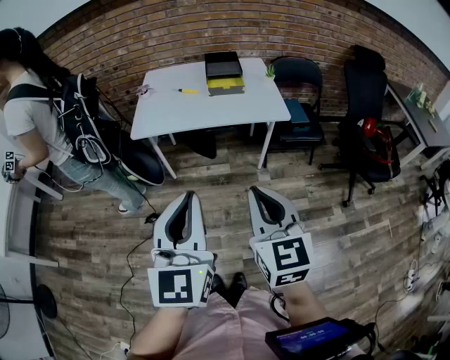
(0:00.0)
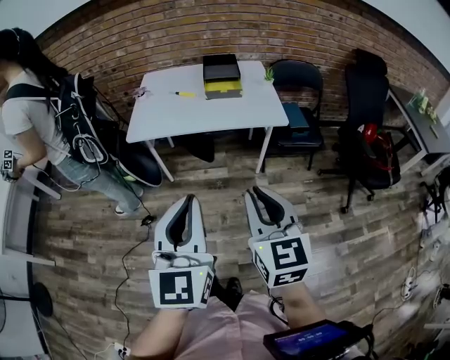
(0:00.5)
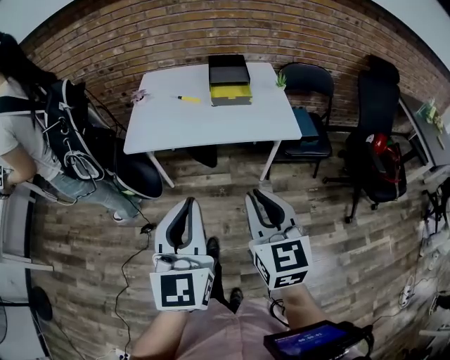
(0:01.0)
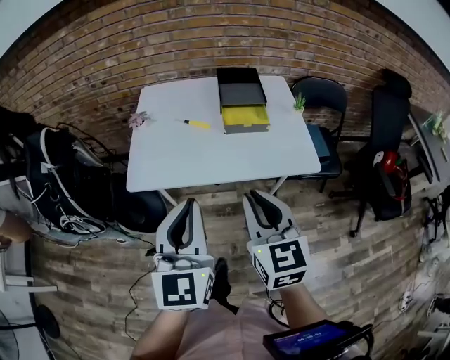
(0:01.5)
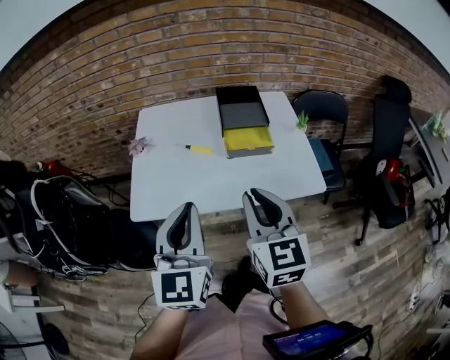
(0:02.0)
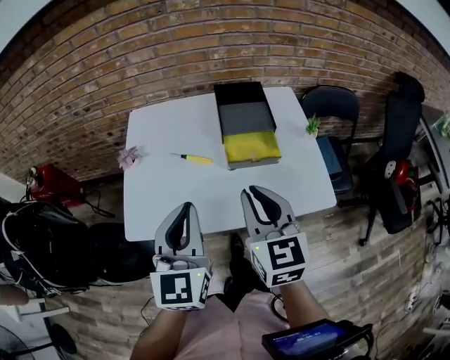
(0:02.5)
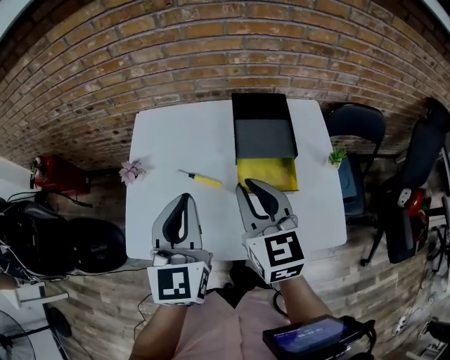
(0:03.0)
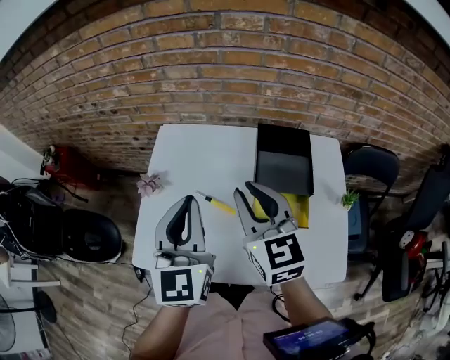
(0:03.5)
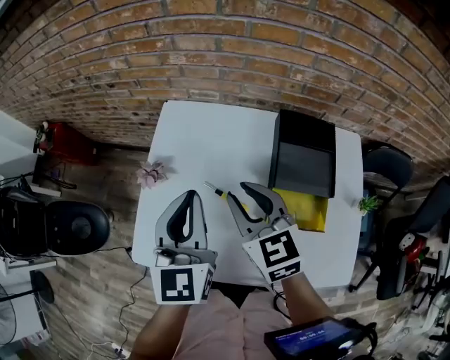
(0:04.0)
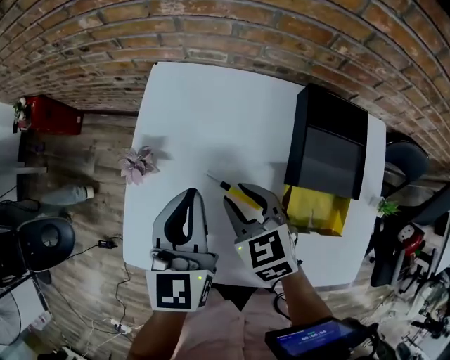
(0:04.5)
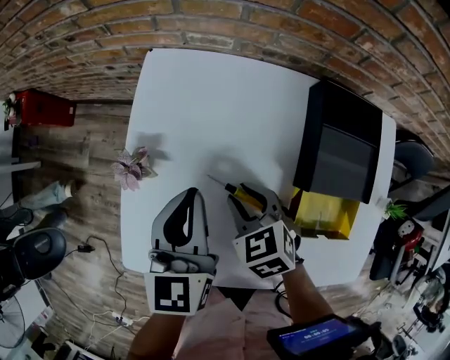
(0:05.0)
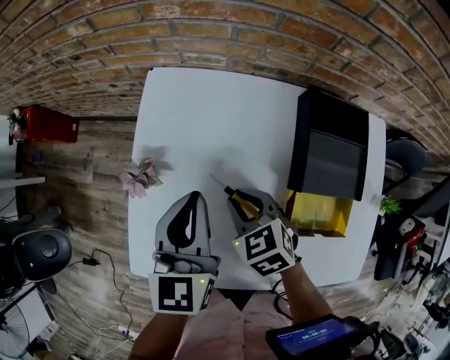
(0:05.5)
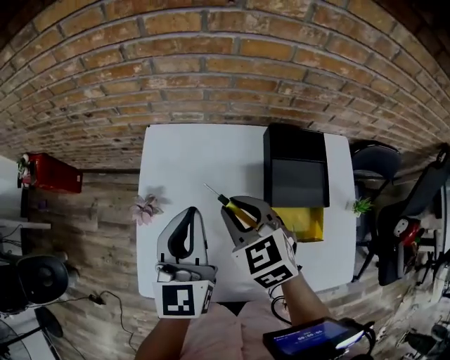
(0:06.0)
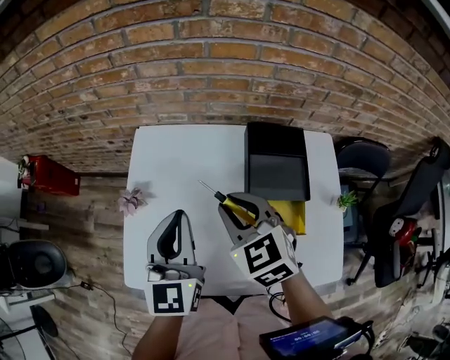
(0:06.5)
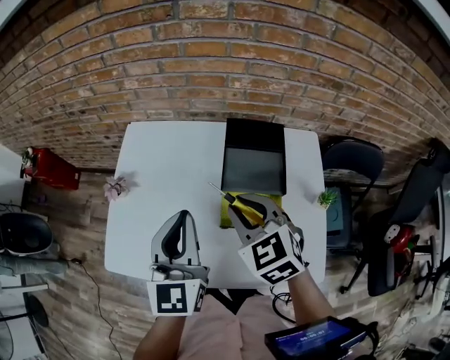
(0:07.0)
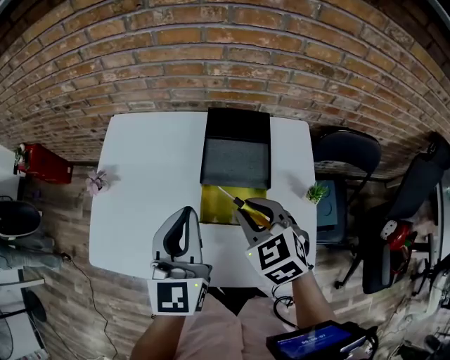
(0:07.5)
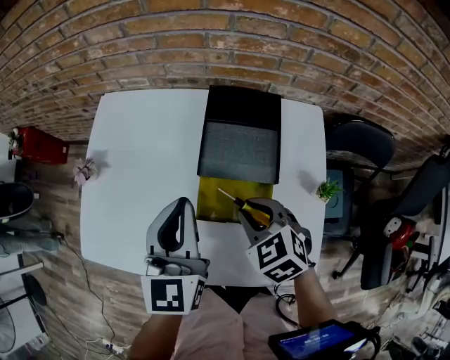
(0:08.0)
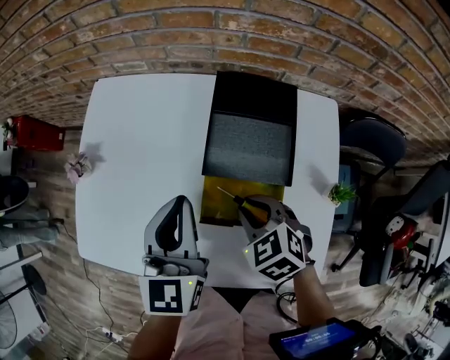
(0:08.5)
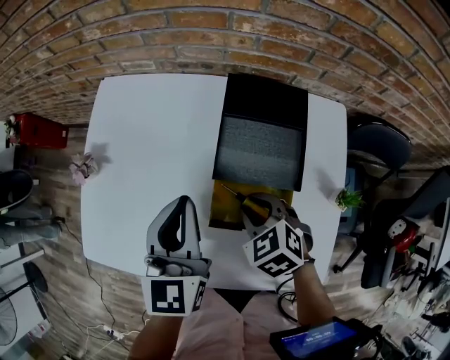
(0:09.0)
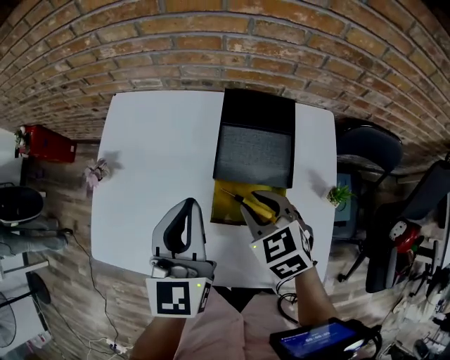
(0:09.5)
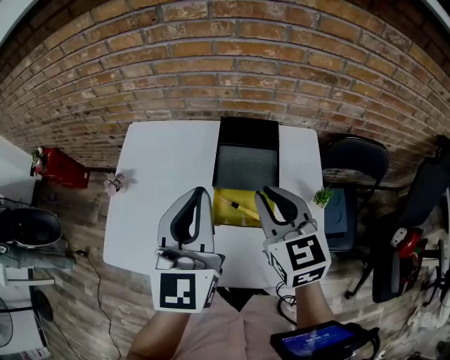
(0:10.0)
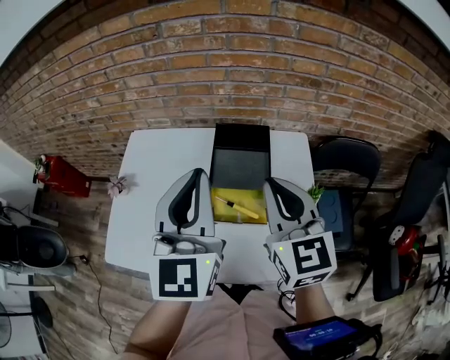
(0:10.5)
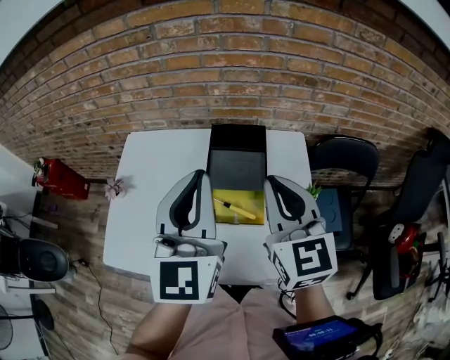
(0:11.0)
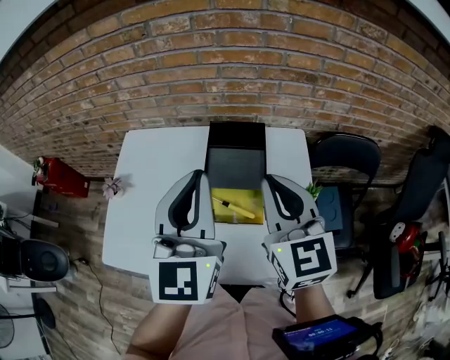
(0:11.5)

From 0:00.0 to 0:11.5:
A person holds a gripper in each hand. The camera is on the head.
From 0:00.0 to 0:02.0: The two grippers go roughly 40 cm forward.
From 0:02.0 to 0:04.0: Both grippers travel together forward, approximately 30 cm. The right gripper changes its angle by some 30 degrees.
From 0:04.0 to 0:06.0: The left gripper reaches roughly 15 cm downward, then returns. Meanwhile the right gripper goes downward and returns, roughly 20 cm each way.
From 0:06.0 to 0:07.5: Both grippers move to the right and backward, about 20 cm.
From 0:07.5 to 0:09.5: The right gripper heads downward, covering approximately 5 cm.
From 0:09.5 to 0:11.5: The right gripper shifts about 20 cm upward, angles its fingers upward, by about 40 degrees, and closes its fingers, while the left gripper shifts some 15 cm upward and to the right.

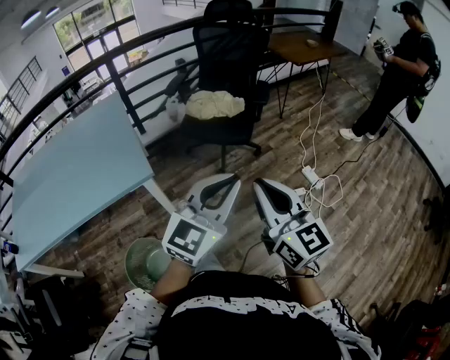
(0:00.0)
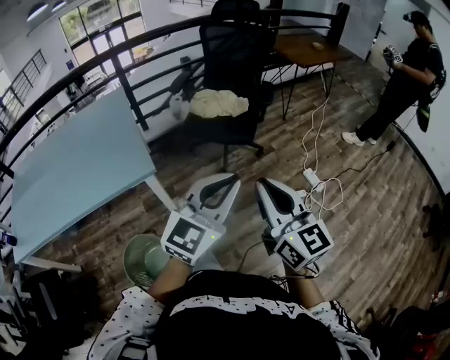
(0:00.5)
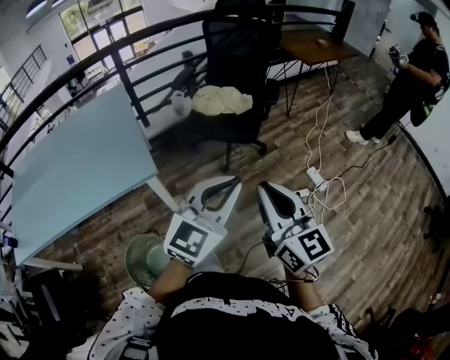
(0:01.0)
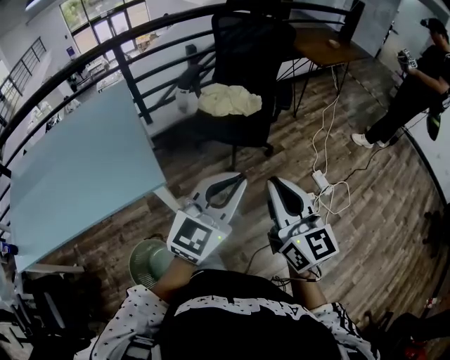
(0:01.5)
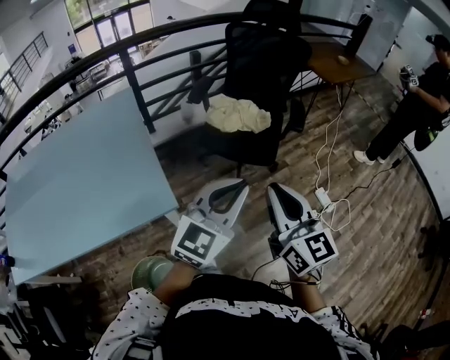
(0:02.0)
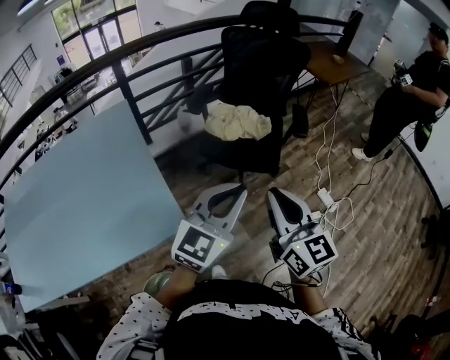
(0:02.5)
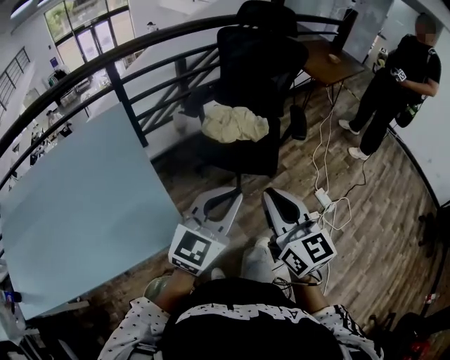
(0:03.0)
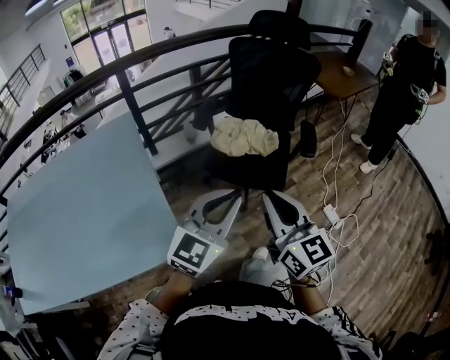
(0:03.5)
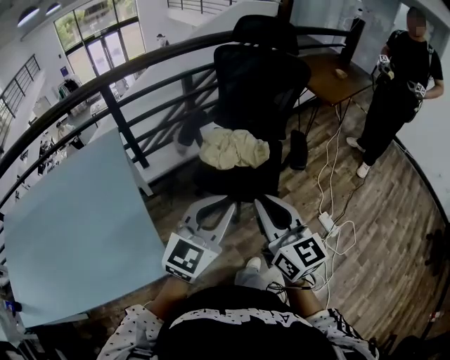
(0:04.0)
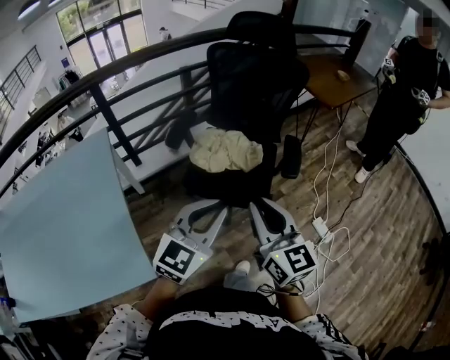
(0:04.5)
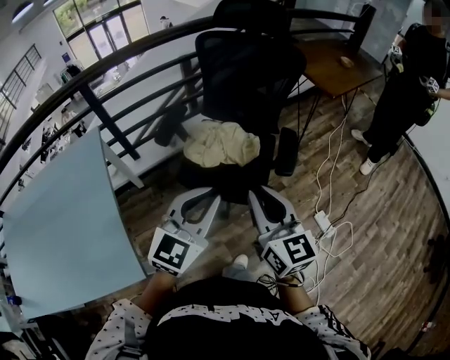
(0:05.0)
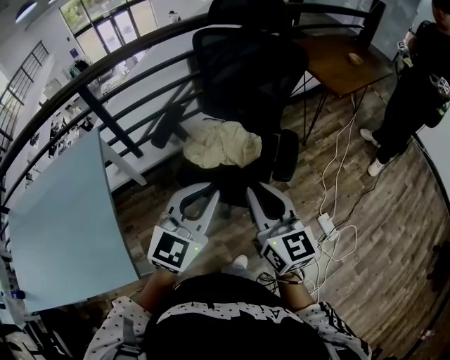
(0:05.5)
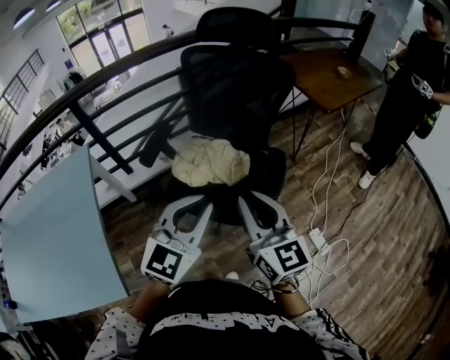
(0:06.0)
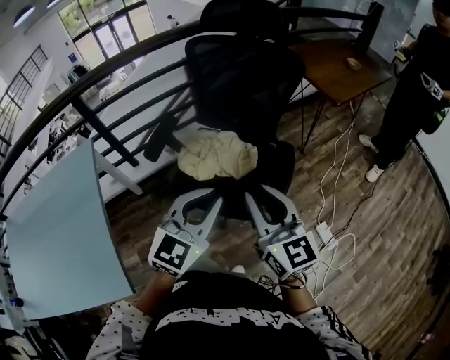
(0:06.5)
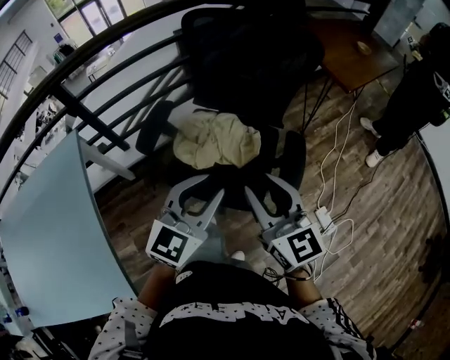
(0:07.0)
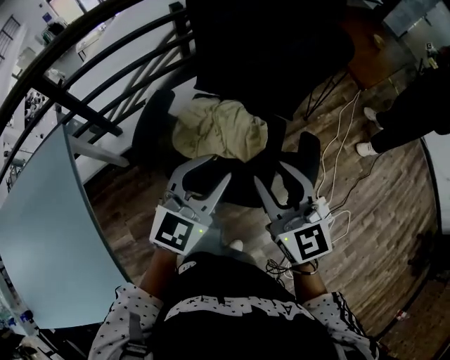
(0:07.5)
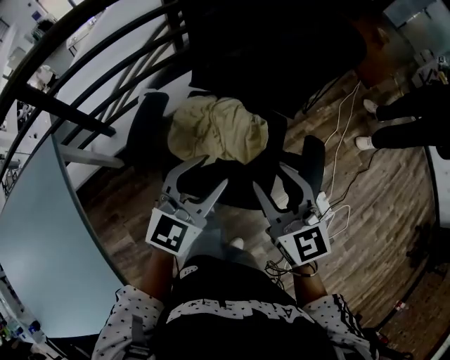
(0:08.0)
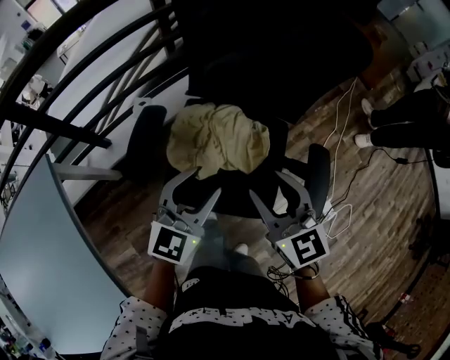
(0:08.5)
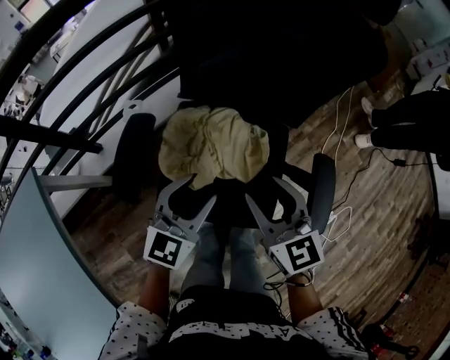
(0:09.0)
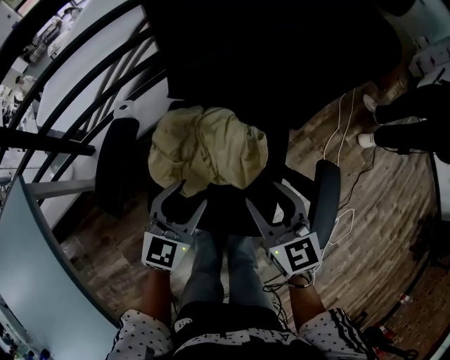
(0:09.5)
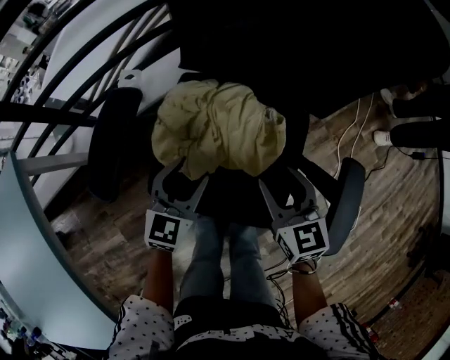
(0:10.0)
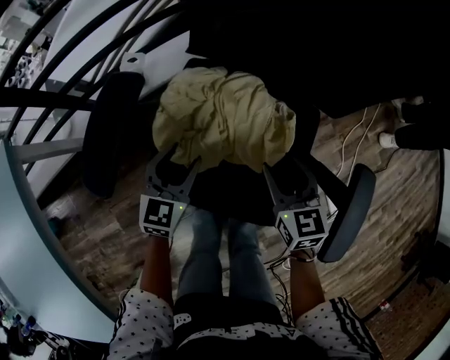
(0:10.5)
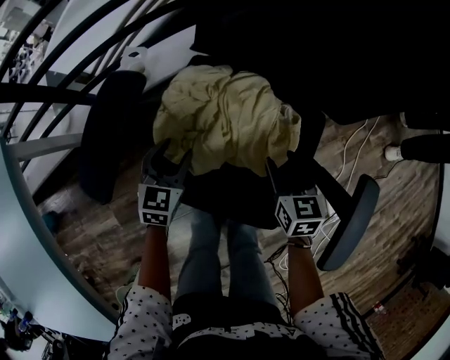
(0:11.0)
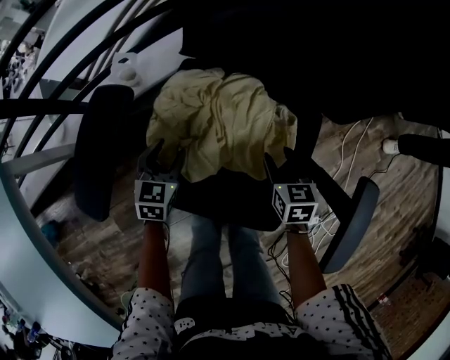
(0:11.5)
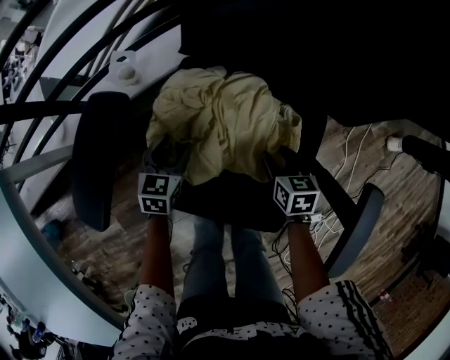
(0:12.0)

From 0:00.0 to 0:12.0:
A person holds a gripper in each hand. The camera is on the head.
From 0:00.0 to 0:02.0: Both grippers travel together forward and to the left, roughly 20 cm.
From 0:02.0 to 0:04.0: Both grippers travel together forward, some 15 cm.
From 0:04.0 to 0:06.0: Both grippers travel together forward and to the right, roughly 20 cm.
From 0:06.0 to 0:08.0: Both grippers travel together forward, downward and to the left, about 25 cm. The right gripper opens. The left gripper opens up.
From 0:08.0 to 0:10.0: The right gripper is displaced downward and forward by about 25 cm. The left gripper goes about 25 cm downward, and rotates some 20 degrees.
From 0:10.0 to 0:12.0: The right gripper is displaced downward by approximately 20 cm, and rotates approximately 30 degrees. Meanwhile the left gripper is displaced downward, to the left and forward by about 20 cm, and rotates about 20 degrees.

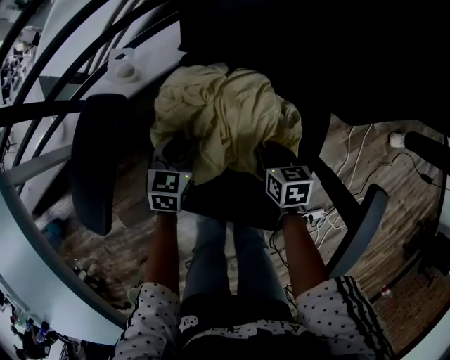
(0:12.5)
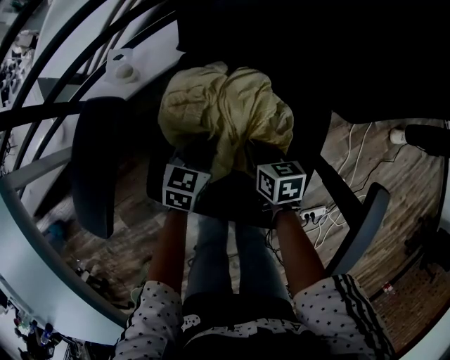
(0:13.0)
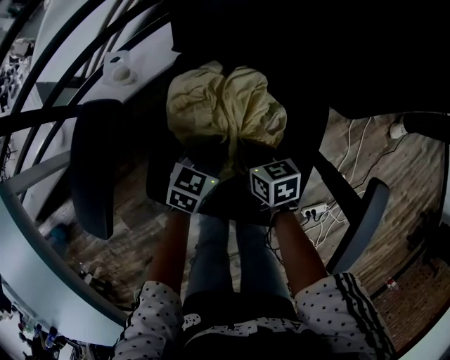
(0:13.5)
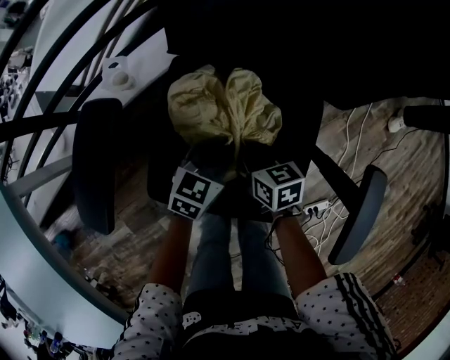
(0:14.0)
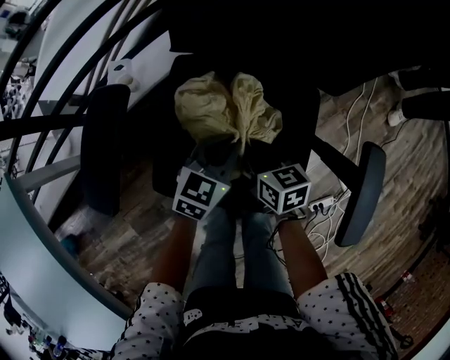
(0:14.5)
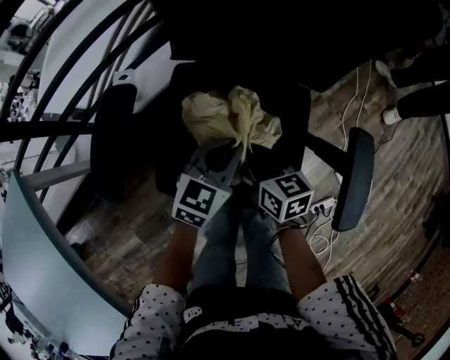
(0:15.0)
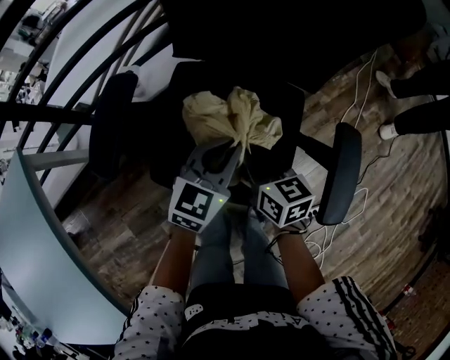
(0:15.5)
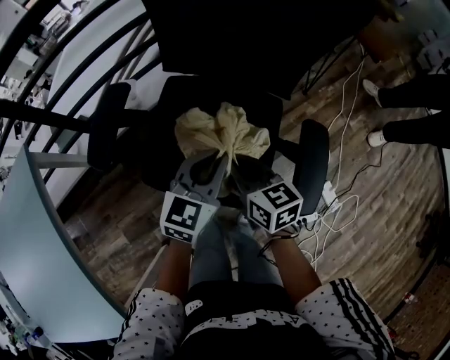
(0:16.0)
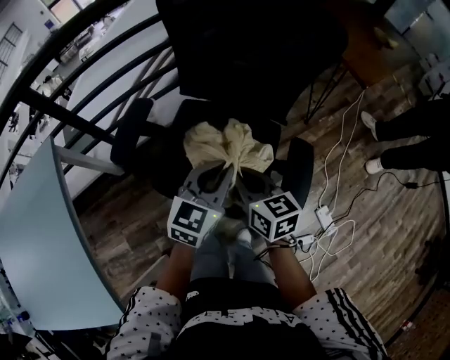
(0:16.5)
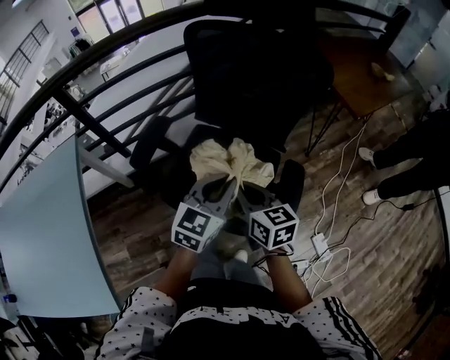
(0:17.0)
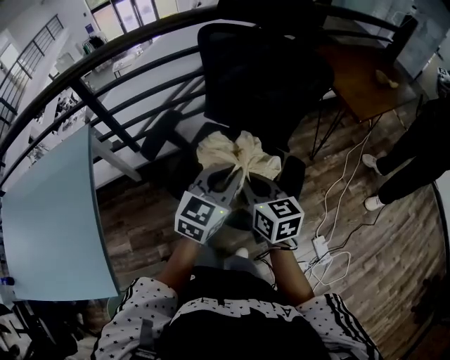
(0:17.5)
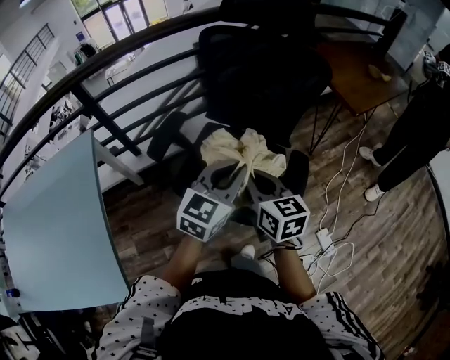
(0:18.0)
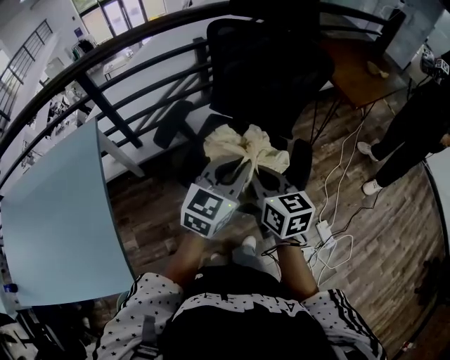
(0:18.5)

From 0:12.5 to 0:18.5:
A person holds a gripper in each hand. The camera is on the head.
From 0:12.5 to 0:14.5: The right gripper is displaced upward and to the left by some 10 cm, while the left gripper moves to the right and upward, roughly 15 cm, rotates approximately 30 degrees, and closes.
From 0:14.5 to 0:16.5: Both grippers travel together upward and backward, roughly 25 cm.
From 0:16.5 to 0:18.5: Both grippers move upward and backward, some 15 cm.
